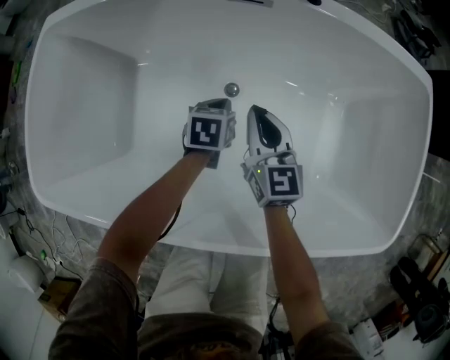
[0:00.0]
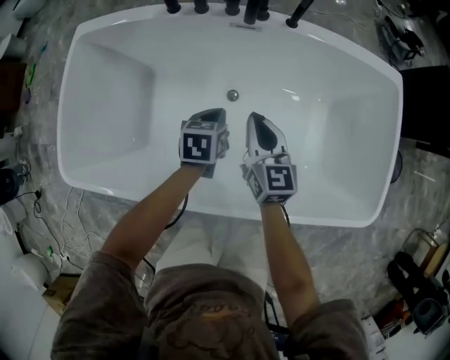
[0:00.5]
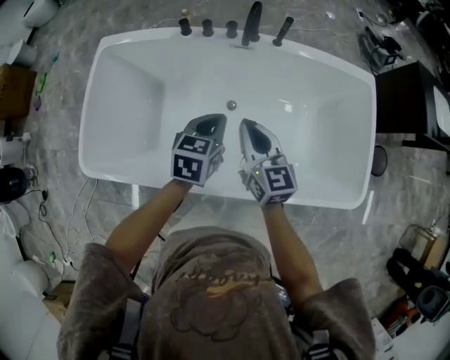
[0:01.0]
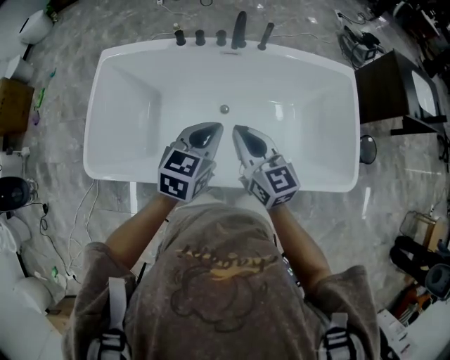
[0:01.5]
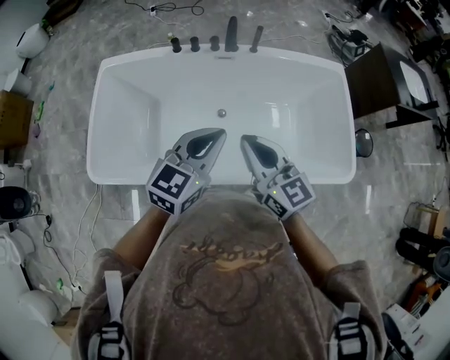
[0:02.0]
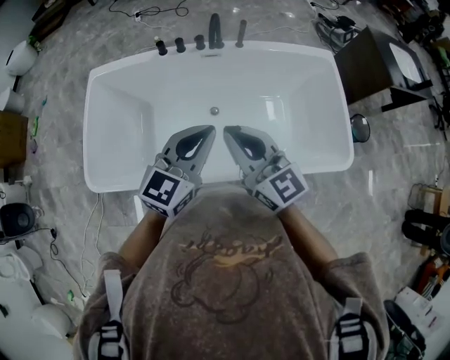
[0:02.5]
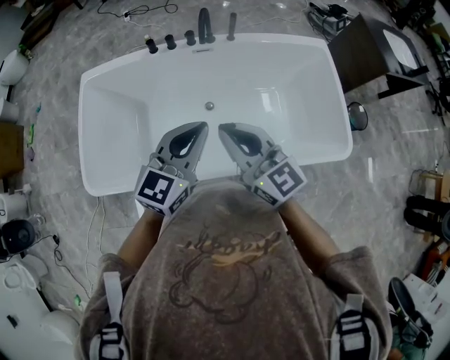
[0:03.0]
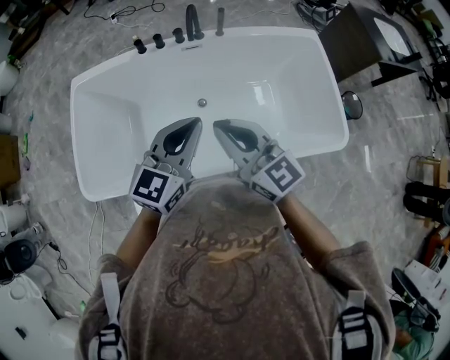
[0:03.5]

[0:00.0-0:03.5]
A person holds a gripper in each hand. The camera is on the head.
0:00.0 to 0:02.0: Both grippers travel together upward and backward, approximately 60 cm. The left gripper angles its fingers upward, by about 40 degrees.
0:02.0 to 0:03.5: The grippers make only small movements.

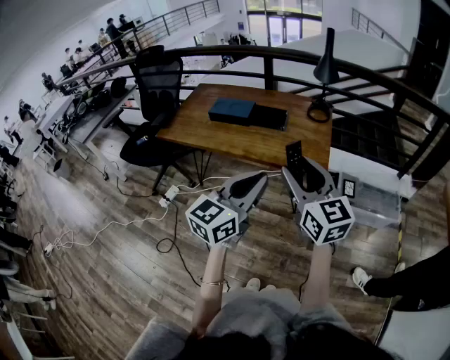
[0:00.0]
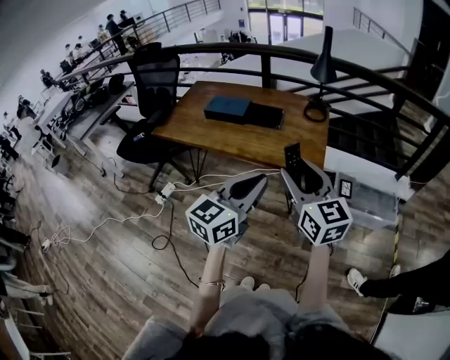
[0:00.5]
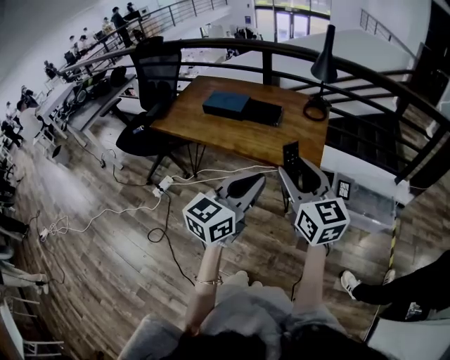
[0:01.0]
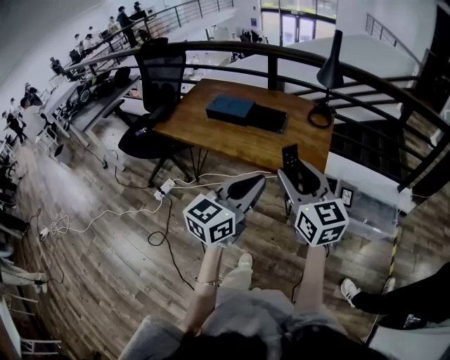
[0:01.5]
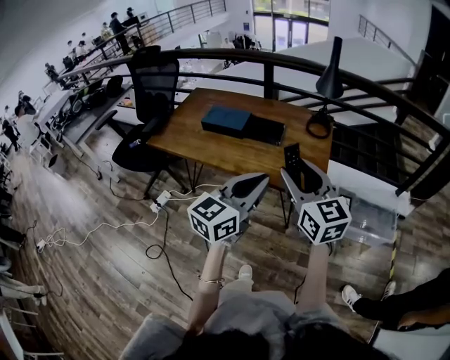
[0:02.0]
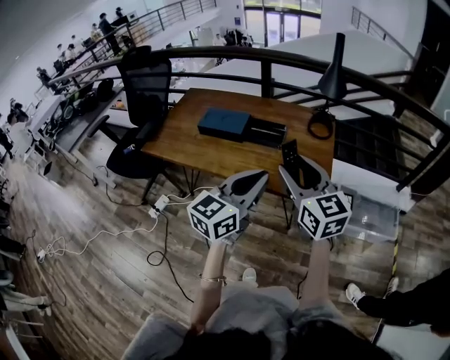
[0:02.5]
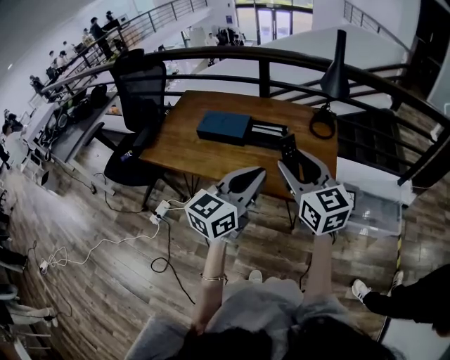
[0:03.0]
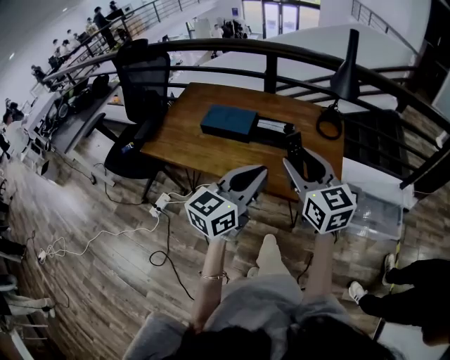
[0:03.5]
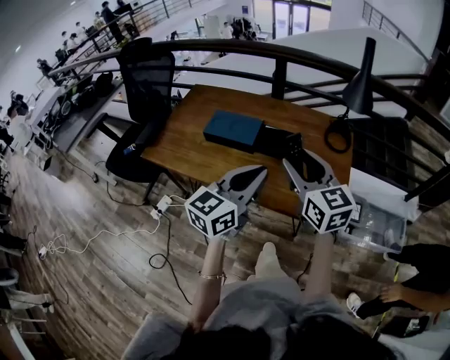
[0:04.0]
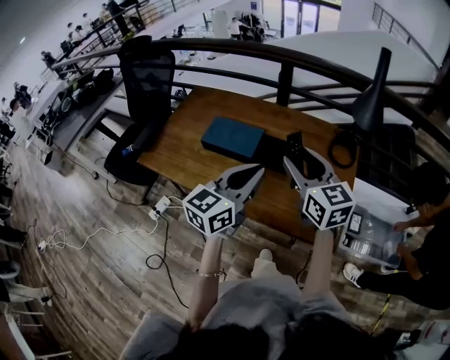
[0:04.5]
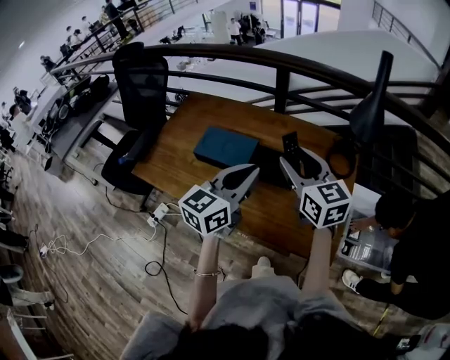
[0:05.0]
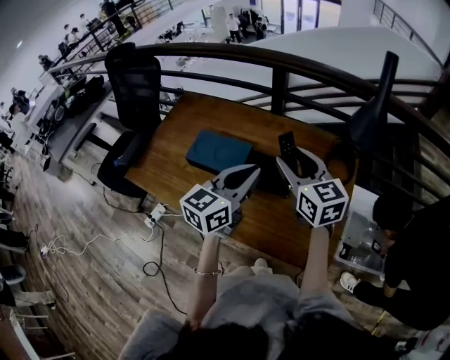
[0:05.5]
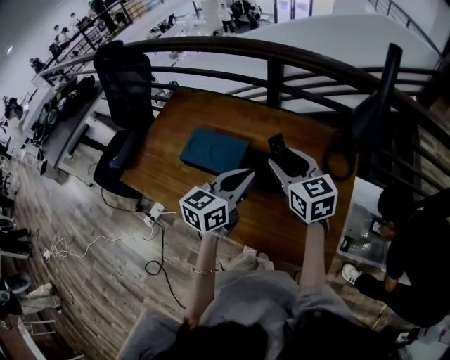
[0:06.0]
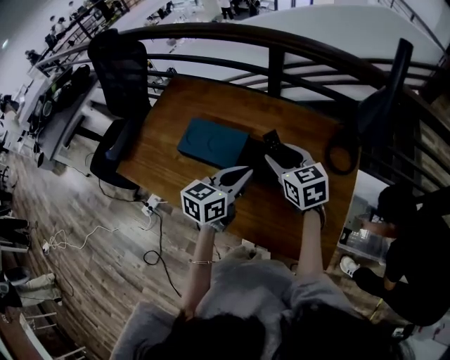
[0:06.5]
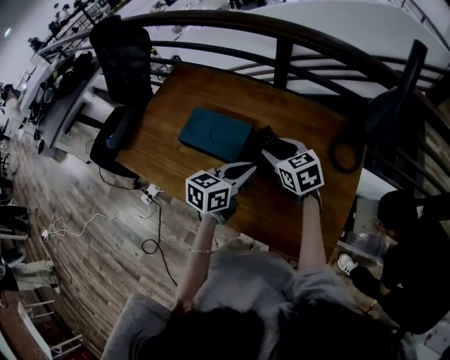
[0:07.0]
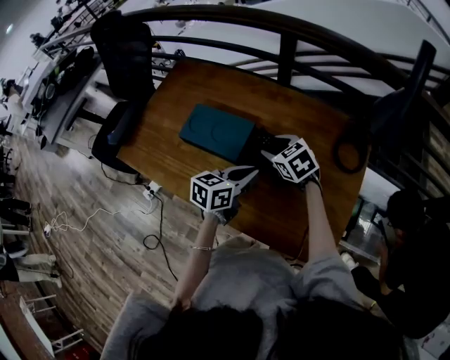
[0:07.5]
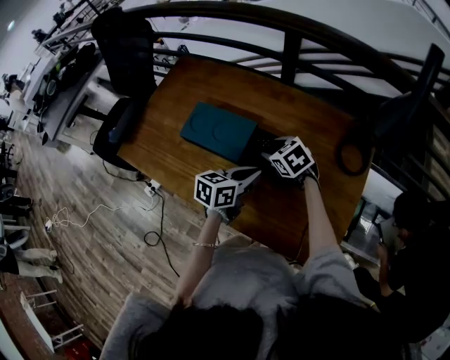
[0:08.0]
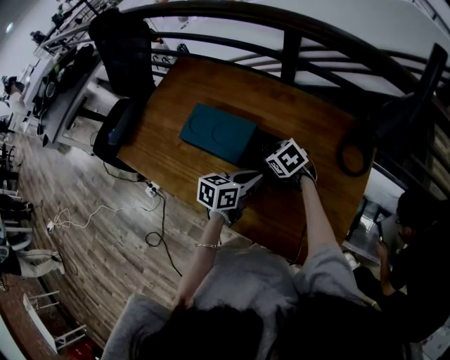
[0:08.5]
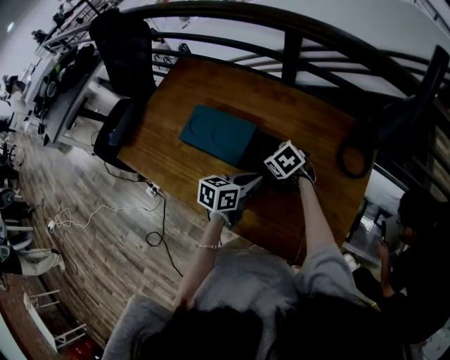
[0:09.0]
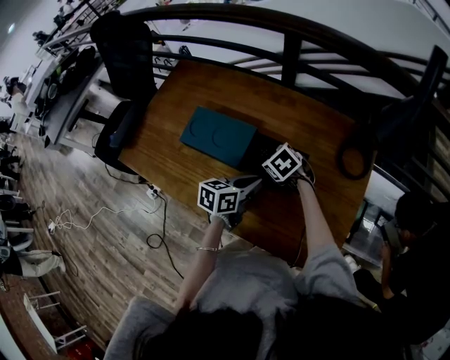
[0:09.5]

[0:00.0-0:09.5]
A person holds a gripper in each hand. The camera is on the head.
0:00.0 to 0:02.0: The two grippers go roughly 10 cm forward.
0:02.0 to 0:04.0: The two grippers go approximately 20 cm forward and to the left.
0:04.0 to 0:05.5: Both grippers move forward, approximately 20 cm.
0:05.5 to 0:07.5: Both grippers move downward, approximately 20 cm. The right gripper tilts its fingers some 30 degrees downward. Meanwhile the left gripper changes its angle by about 30 degrees.
0:07.5 to 0:09.5: The right gripper goes about 10 cm downward.

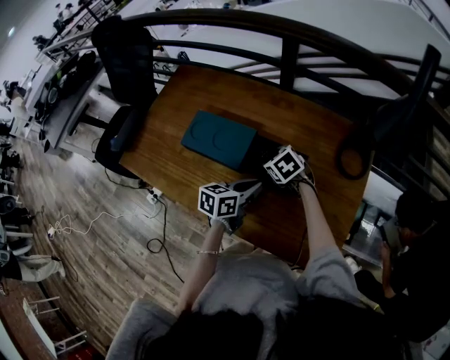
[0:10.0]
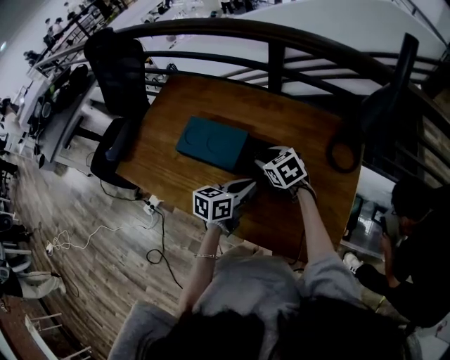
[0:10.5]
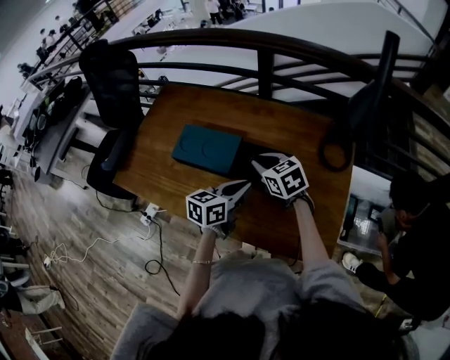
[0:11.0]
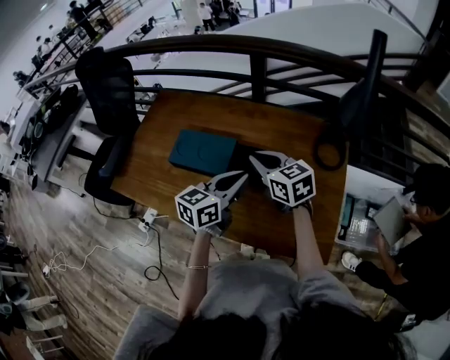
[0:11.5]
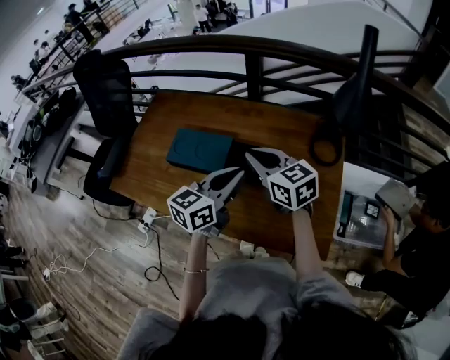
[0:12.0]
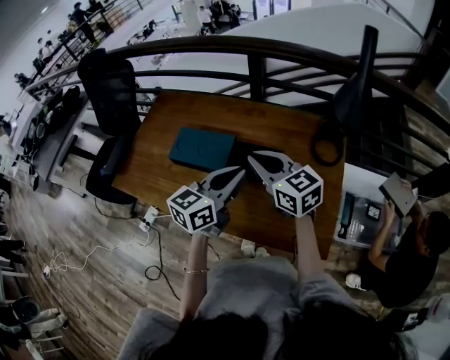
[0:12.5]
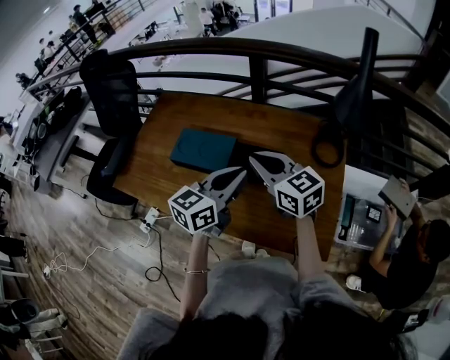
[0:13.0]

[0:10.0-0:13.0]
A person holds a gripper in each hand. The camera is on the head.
0:10.0 to 0:11.5: The grippers both shift upward by about 15 cm. The right gripper points its fingers roughly 30 degrees further upward, and closes its fingers. The left gripper turns by roughly 20 degrees.
0:11.5 to 0:13.0: The right gripper moves upward, about 5 cm; the left gripper shifts by roughly 5 cm.

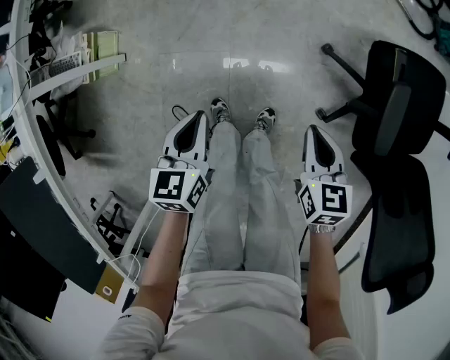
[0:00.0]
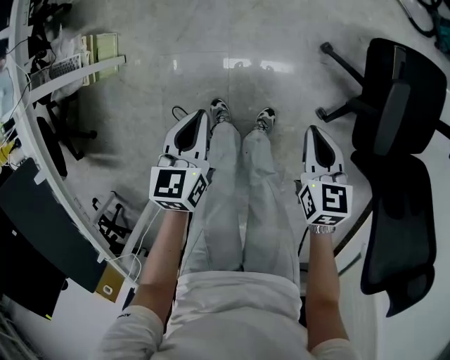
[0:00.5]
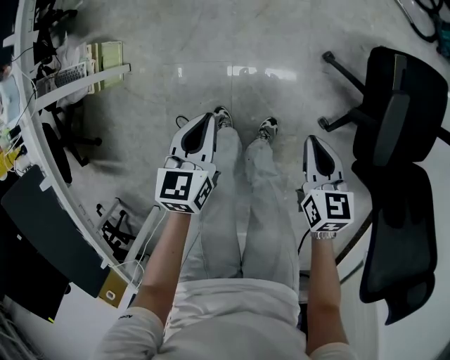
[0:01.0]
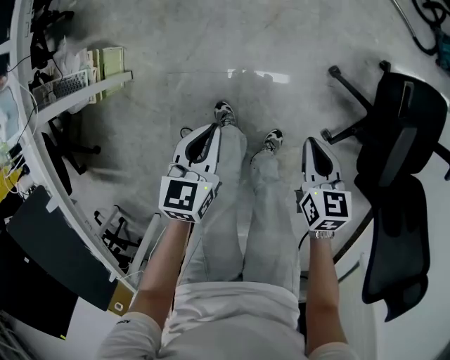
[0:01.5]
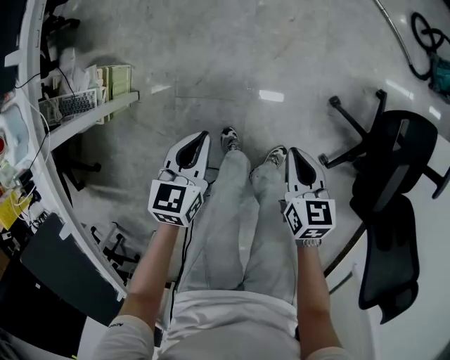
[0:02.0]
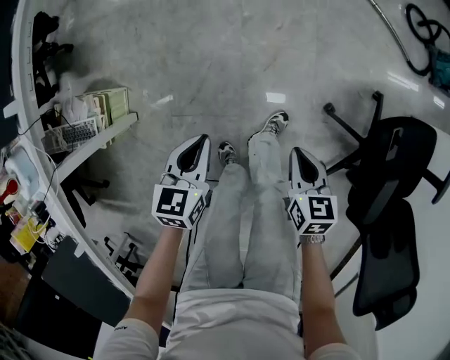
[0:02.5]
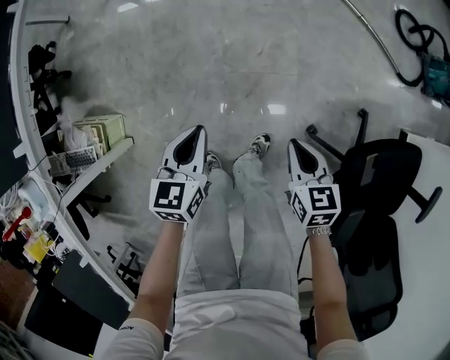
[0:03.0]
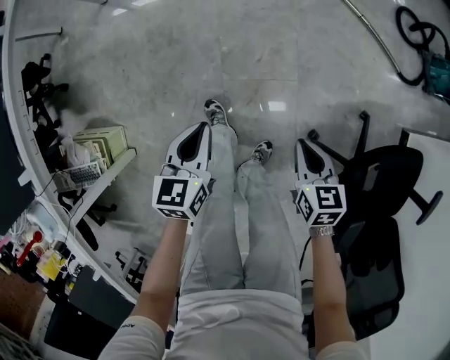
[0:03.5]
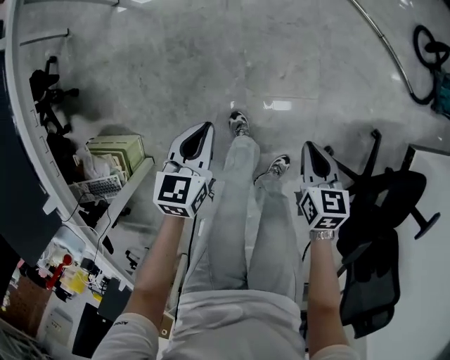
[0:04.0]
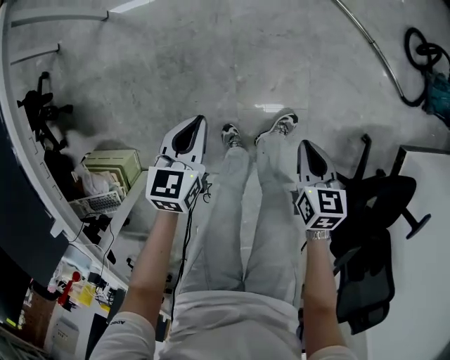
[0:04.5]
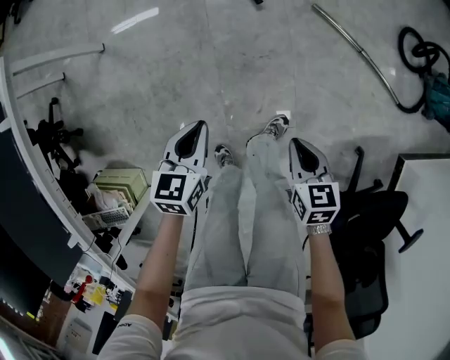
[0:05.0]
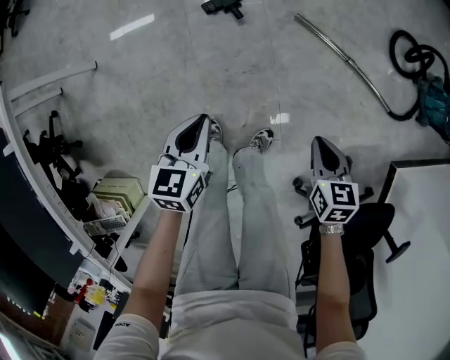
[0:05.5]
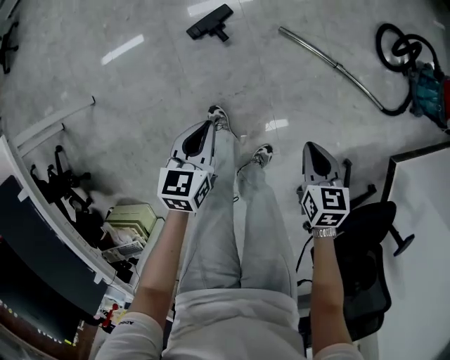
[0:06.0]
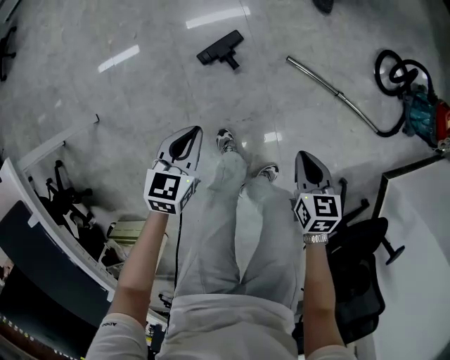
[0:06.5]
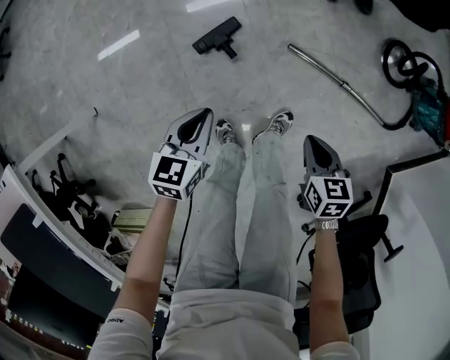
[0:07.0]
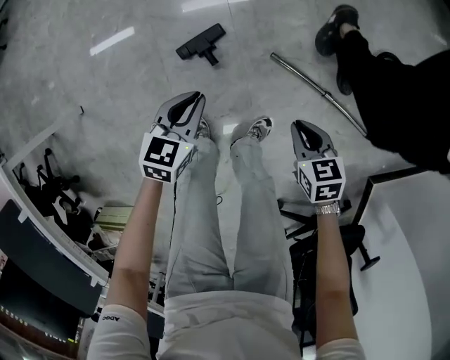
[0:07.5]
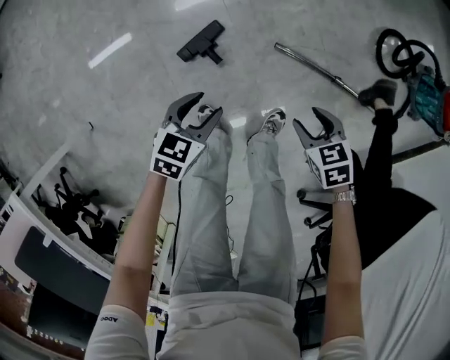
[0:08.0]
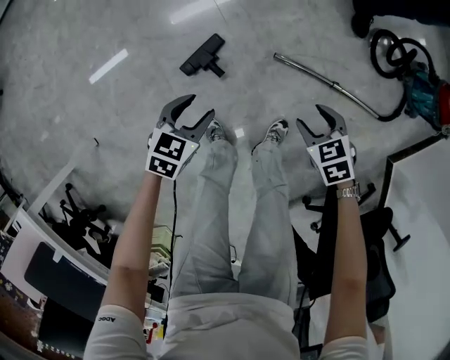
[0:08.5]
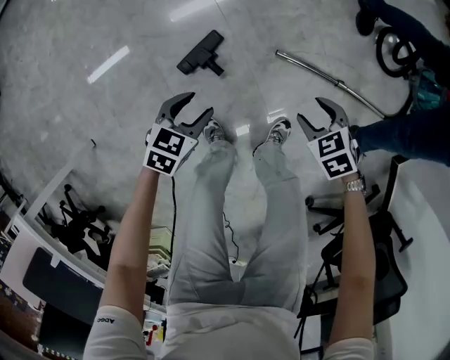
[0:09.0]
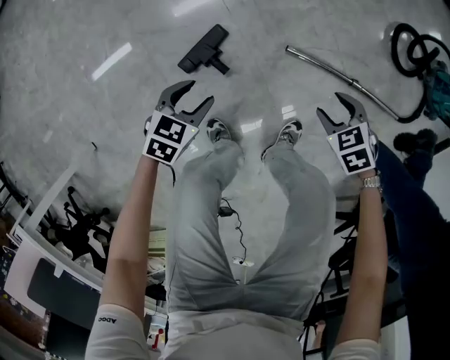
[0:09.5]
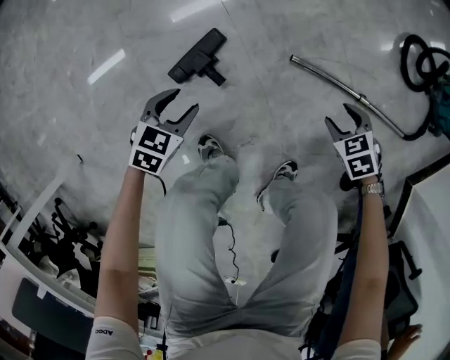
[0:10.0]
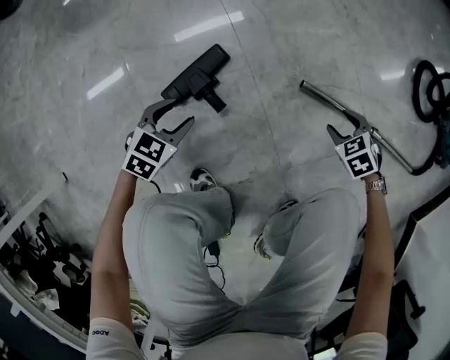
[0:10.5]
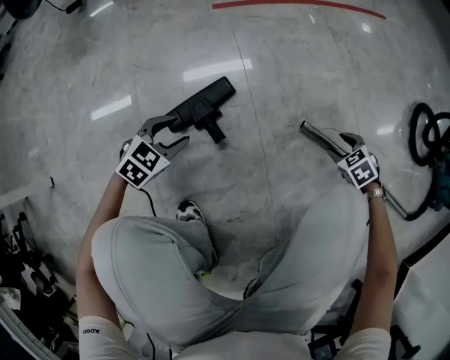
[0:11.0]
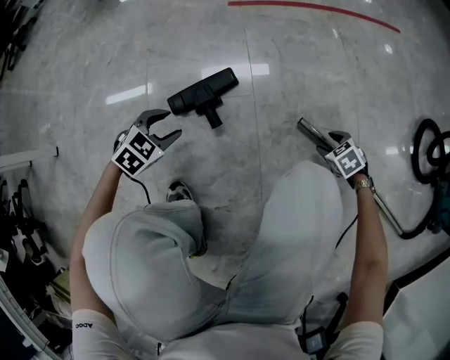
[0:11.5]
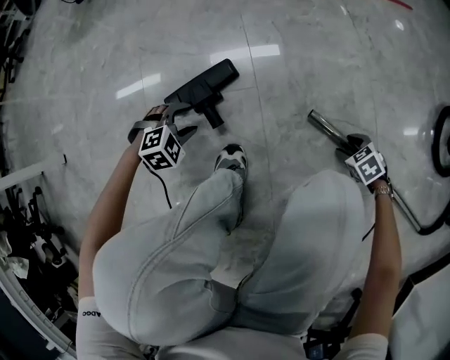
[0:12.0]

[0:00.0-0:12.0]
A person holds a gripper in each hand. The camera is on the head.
0:00.0 to 0:02.0: The left gripper heads forward and to the left, covering approximately 20 cm; the right gripper shifts about 25 cm to the left and forward.
0:02.0 to 0:04.0: The pair of grippers is taken forward, some 40 cm.
0:04.0 to 0:06.0: The pair of grippers is taken forward and to the right, about 40 cm.
0:06.0 to 0:08.0: Both grippers move forward and downward, approximately 25 cm. The right gripper changes its angle by roughly 20 degrees, and opens its fingers. The left gripper turns by about 30 degrees, and opens up.
0:08.0 to 0:10.0: The two grippers go some 25 cm downward.
0:10.0 to 0:12.0: The grippers both shift downward by about 25 cm. The left gripper turns by some 40 degrees.
